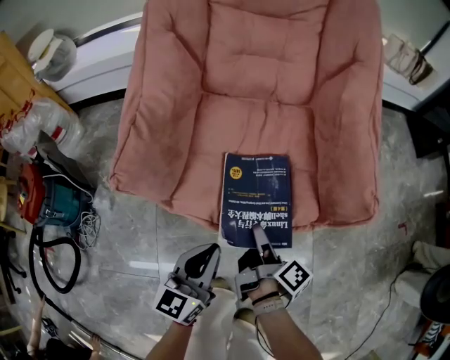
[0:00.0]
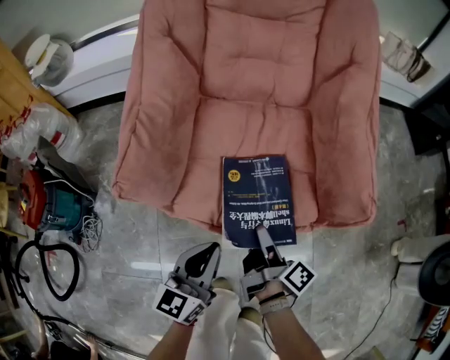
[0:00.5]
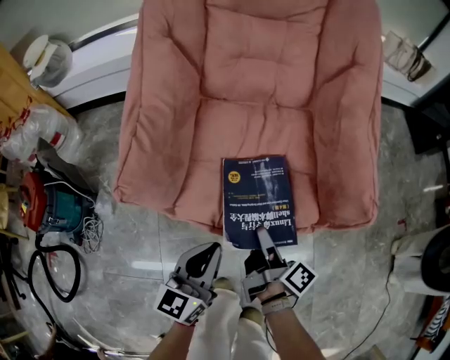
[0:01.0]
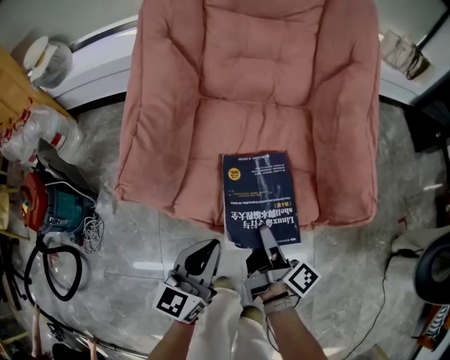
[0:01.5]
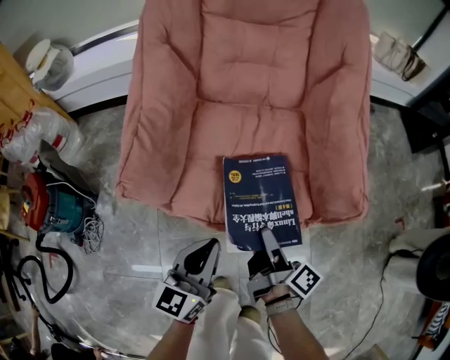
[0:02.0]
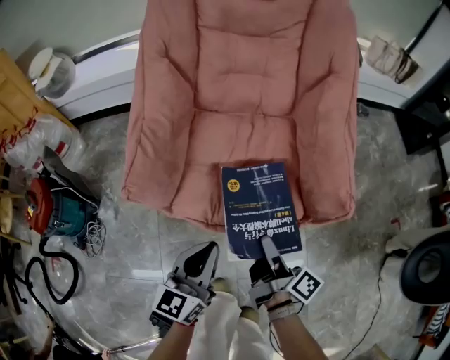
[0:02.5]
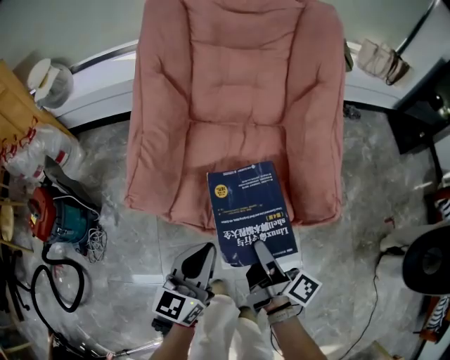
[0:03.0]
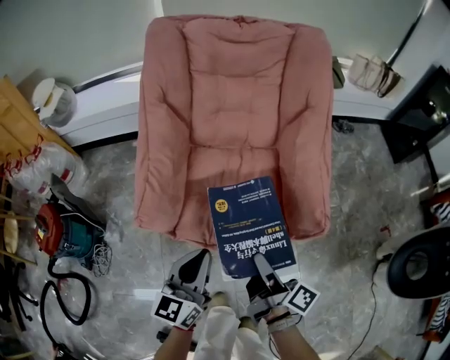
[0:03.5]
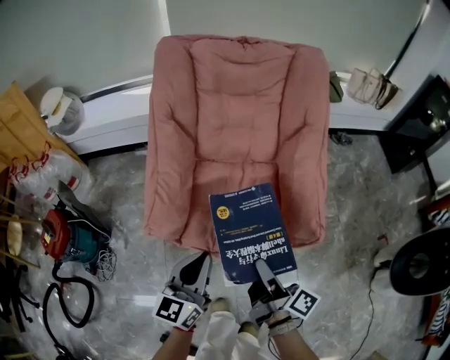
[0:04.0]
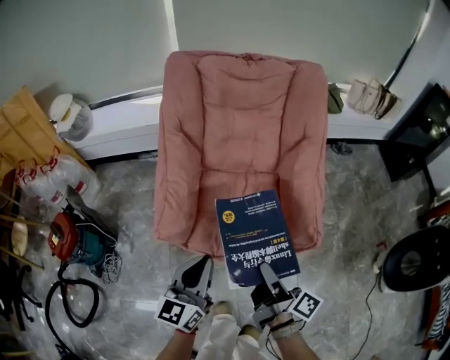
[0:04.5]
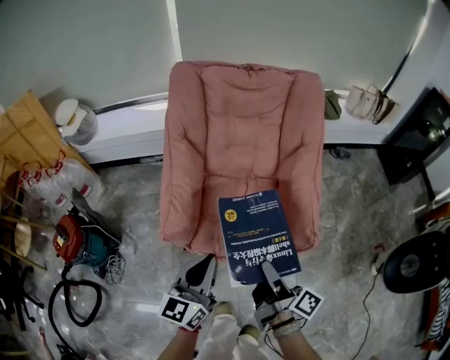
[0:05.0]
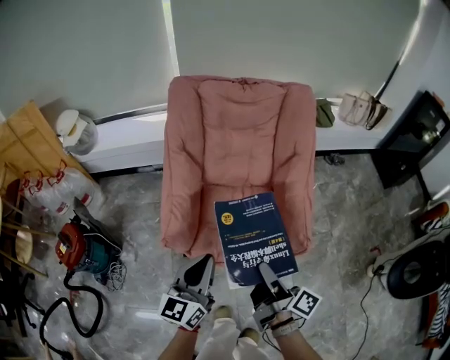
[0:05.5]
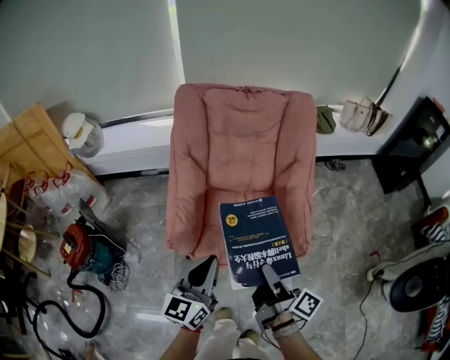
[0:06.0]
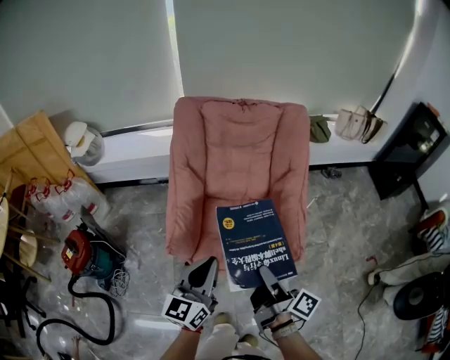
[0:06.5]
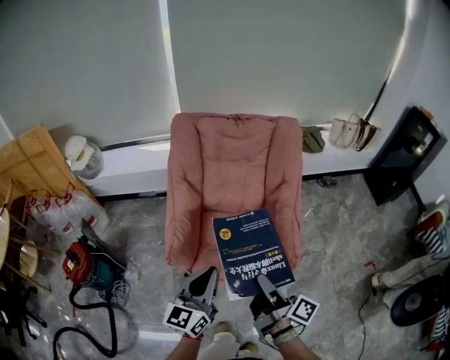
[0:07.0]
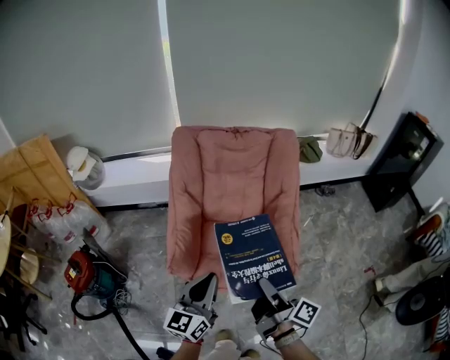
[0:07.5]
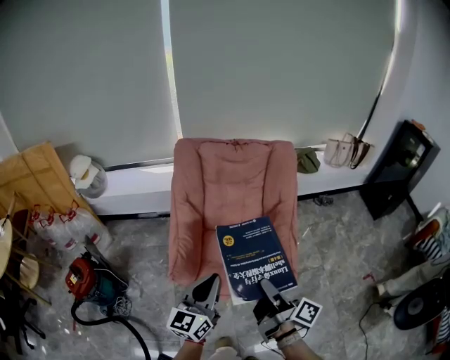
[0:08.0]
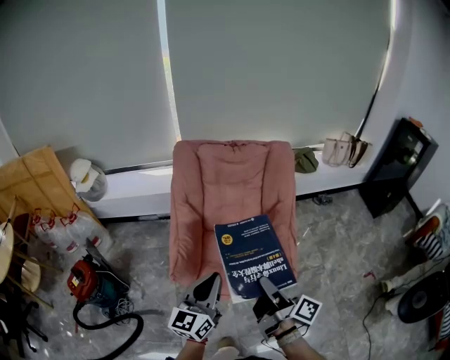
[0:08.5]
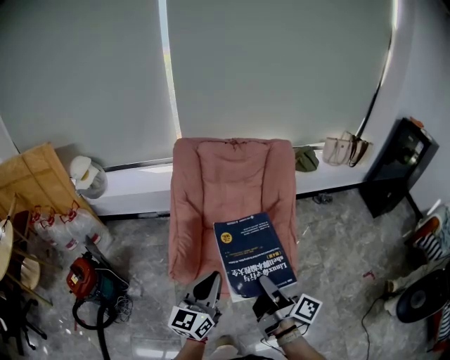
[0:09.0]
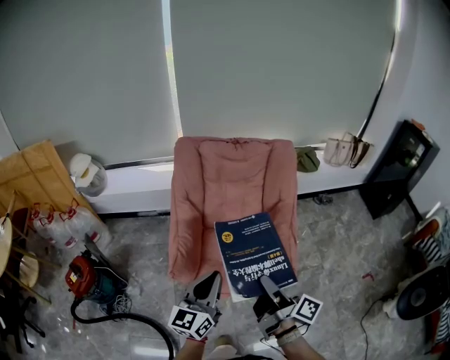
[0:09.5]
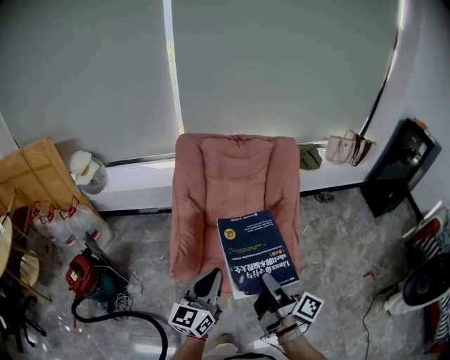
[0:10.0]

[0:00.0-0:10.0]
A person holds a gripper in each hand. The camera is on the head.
0:00.0 to 0:02.0: The right gripper heads upward, covering roughly 5 cm.
0:02.0 to 0:04.0: Both grippers travel together upward, some 15 cm.
0:04.0 to 0:06.0: The grippers both shift upward by approximately 10 cm.
0:06.0 to 0:08.0: Both grippers travel together upward, some 10 cm.
0:08.0 to 0:10.0: Neither gripper changes place.

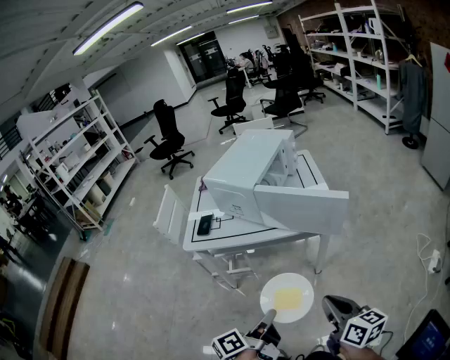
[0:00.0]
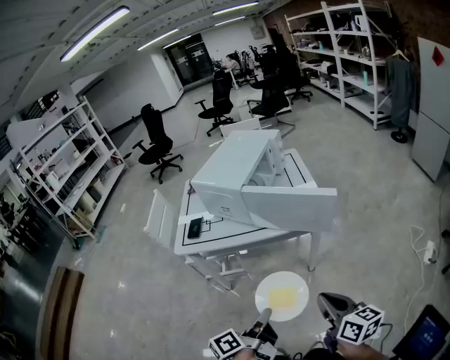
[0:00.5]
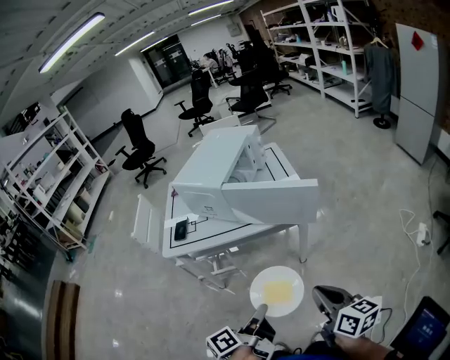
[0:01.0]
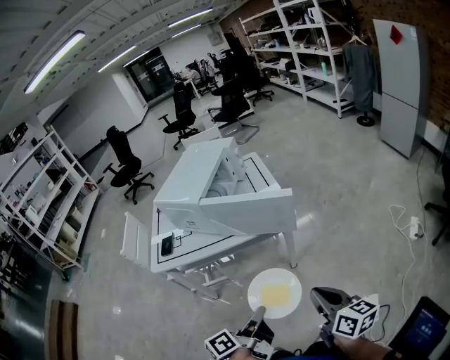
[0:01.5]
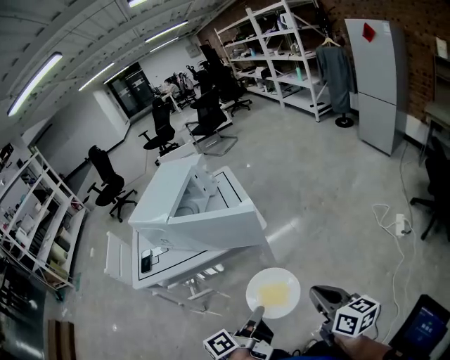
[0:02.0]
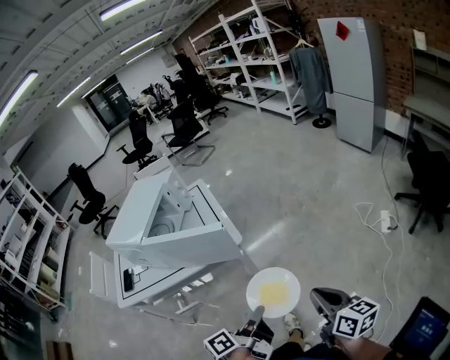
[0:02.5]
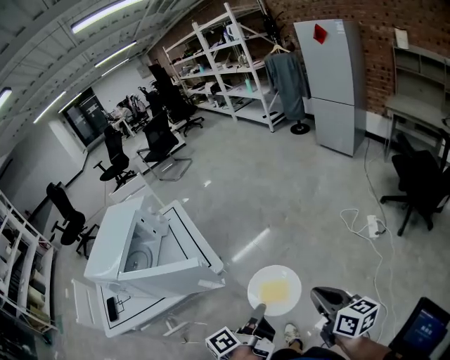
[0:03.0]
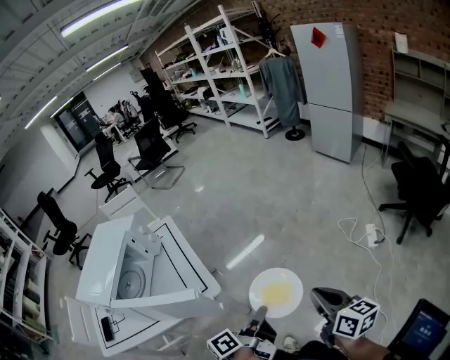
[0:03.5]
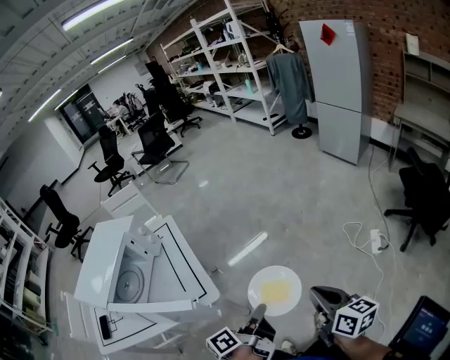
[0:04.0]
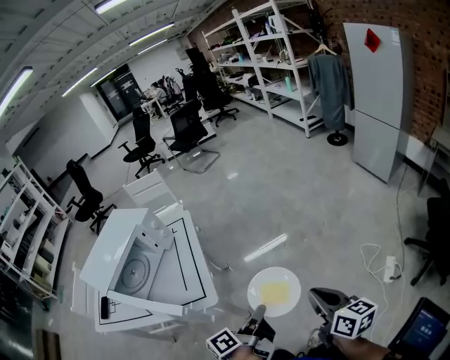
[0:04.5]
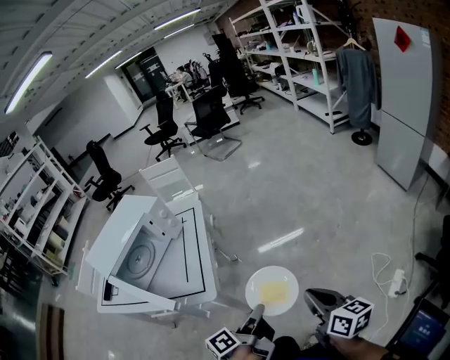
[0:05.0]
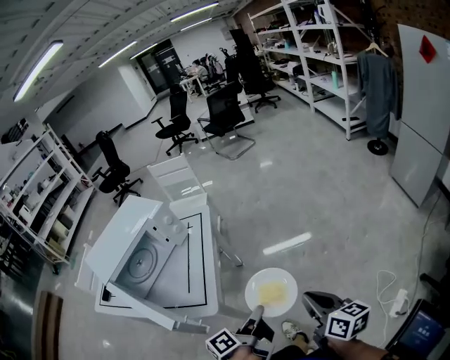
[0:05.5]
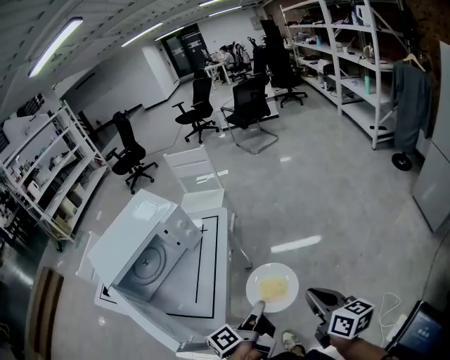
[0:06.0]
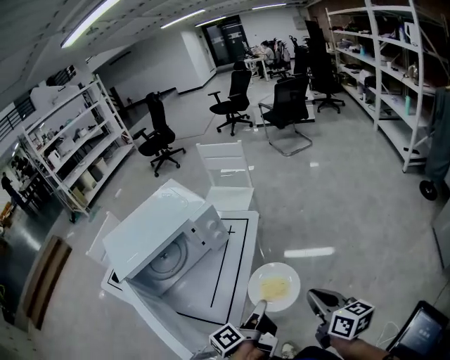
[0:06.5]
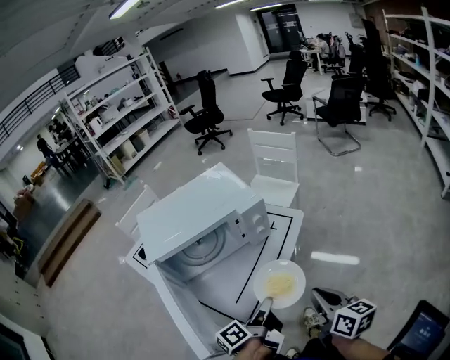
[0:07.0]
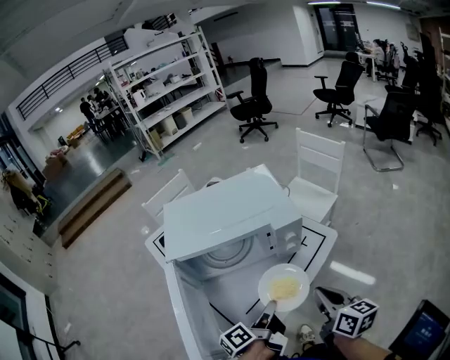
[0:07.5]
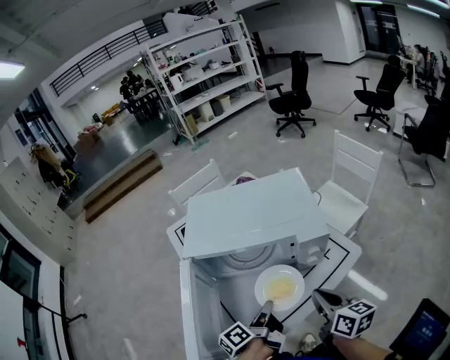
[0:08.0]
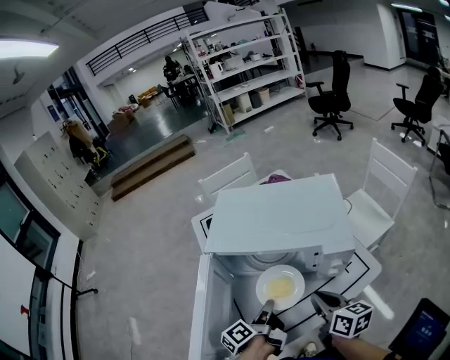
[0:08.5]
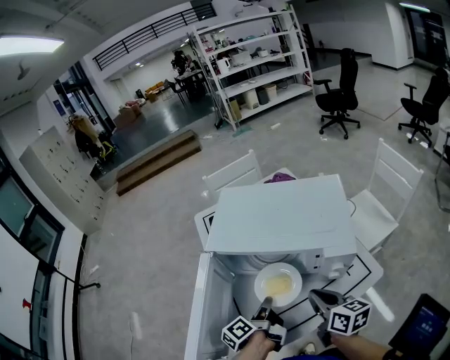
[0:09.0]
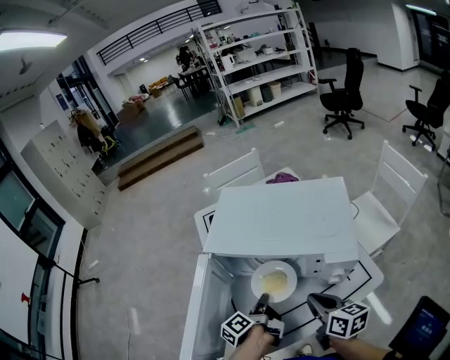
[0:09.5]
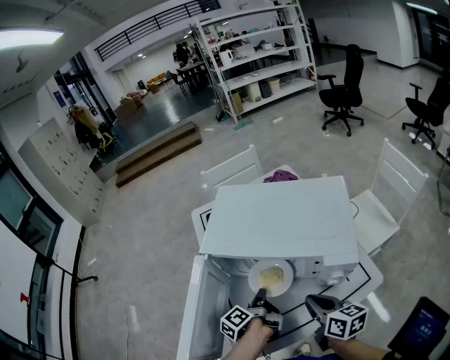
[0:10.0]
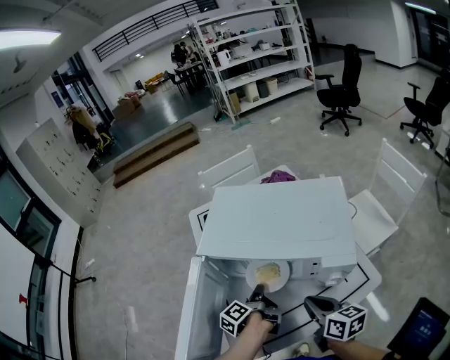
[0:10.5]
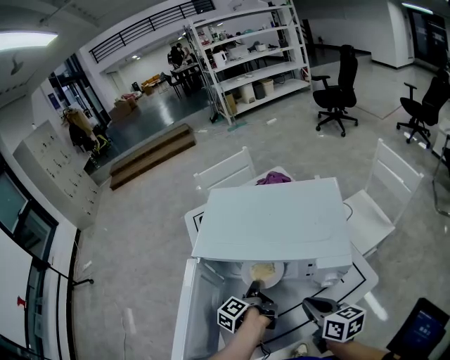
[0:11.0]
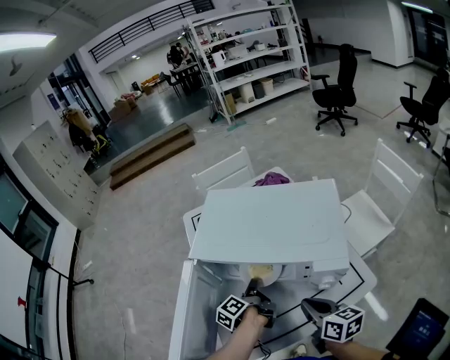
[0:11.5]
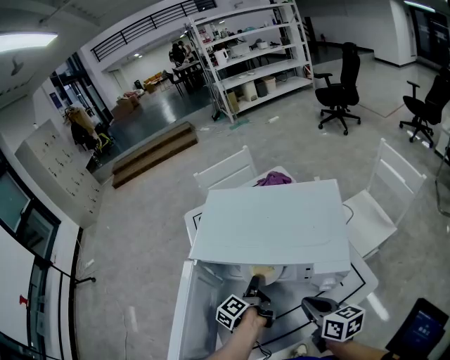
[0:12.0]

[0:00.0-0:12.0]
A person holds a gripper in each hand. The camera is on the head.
0:00.0 to 0:02.0: The two grippers go roughly 15 cm to the right.
0:02.0 to 0:04.0: The grippers both shift forward and to the right by about 30 cm.
0:04.0 to 0:06.0: The right gripper changes place by roughly 30 cm, and rotates approximately 30 degrees, while the left gripper ends up approximately 25 cm from where it was, and changes its angle by some 40 degrees.
0:06.0 to 0:08.0: The left gripper moves about 30 cm, and swivels some 60 degrees. Meanwhile the right gripper moves roughly 40 cm, and swivels some 50 degrees.
0:08.0 to 0:10.0: The left gripper shifts roughly 10 cm forward and downward, and swivels about 20 degrees. Meanwhile the right gripper heads forward, covering some 10 cm.
0:10.0 to 0:12.0: The left gripper is displaced forward by approximately 5 cm.

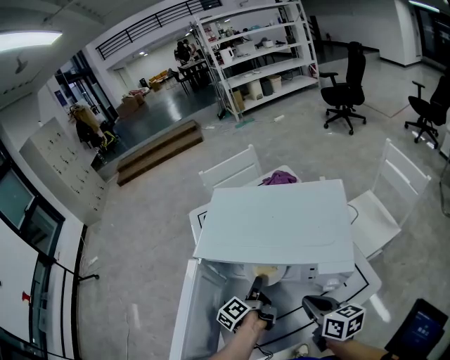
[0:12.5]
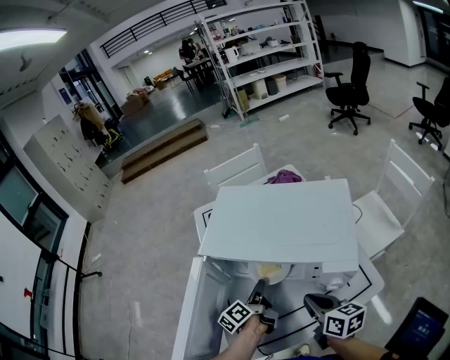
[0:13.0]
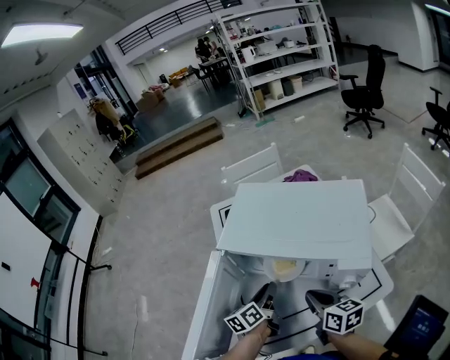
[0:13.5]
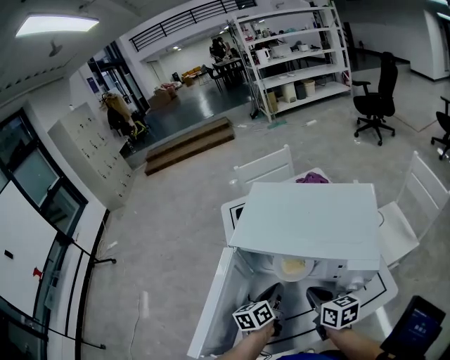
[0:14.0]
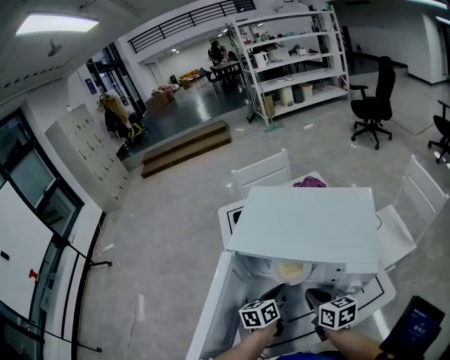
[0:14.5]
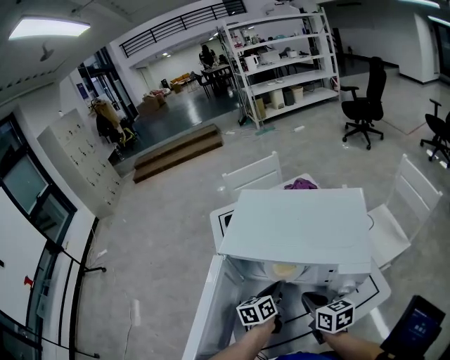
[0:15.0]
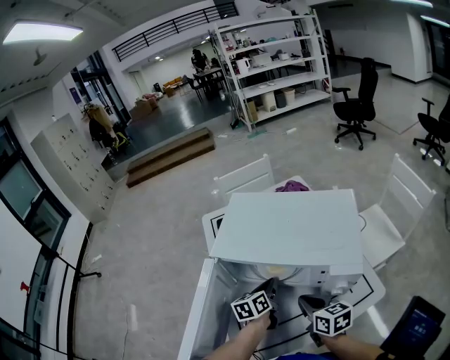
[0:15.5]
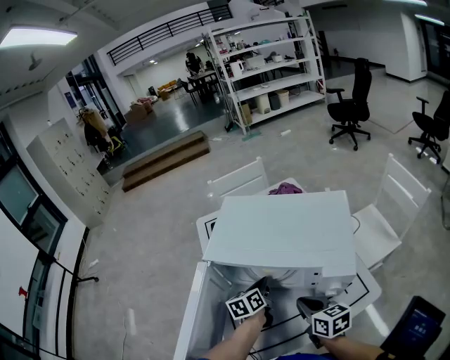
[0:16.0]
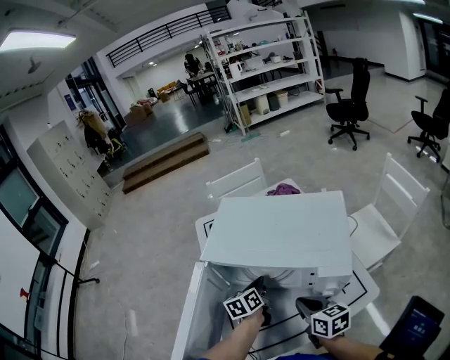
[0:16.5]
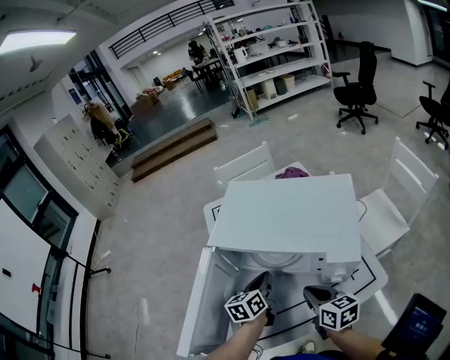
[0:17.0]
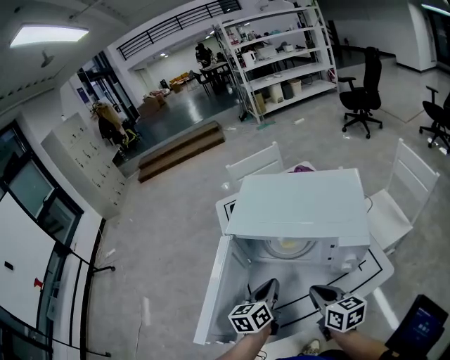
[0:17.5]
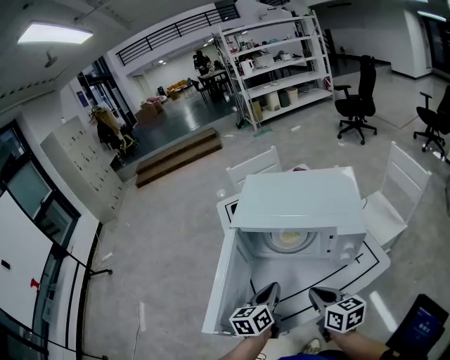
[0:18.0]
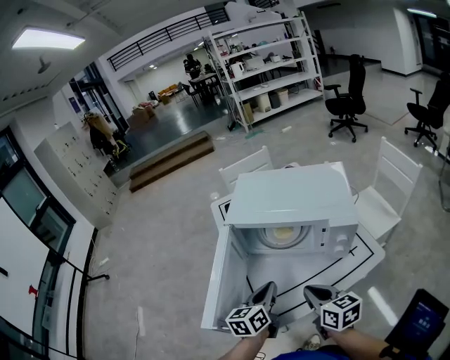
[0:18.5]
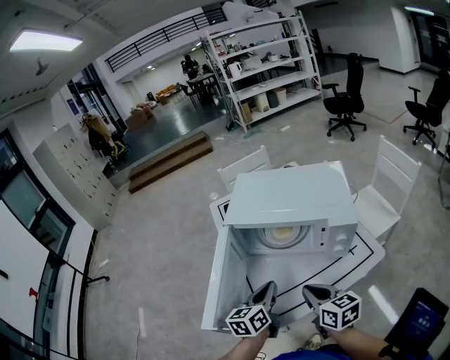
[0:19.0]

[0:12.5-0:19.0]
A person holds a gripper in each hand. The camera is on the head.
0:12.5 to 0:14.5: The left gripper swivels some 40 degrees, and closes. Meanwhile the right gripper is displaced forward and to the left by about 10 cm.
0:14.5 to 0:17.0: The right gripper changes place by about 5 cm.
0:17.0 to 0:19.0: The right gripper moves backward and to the left, some 10 cm; the left gripper moves backward, approximately 15 cm.
